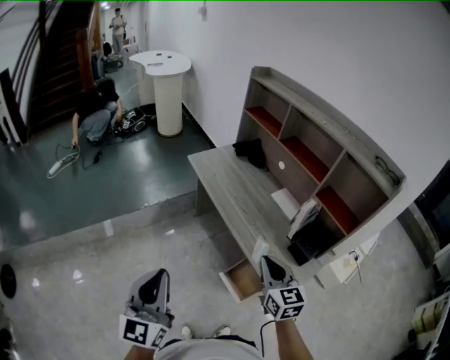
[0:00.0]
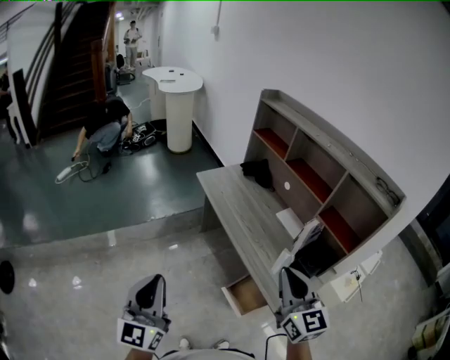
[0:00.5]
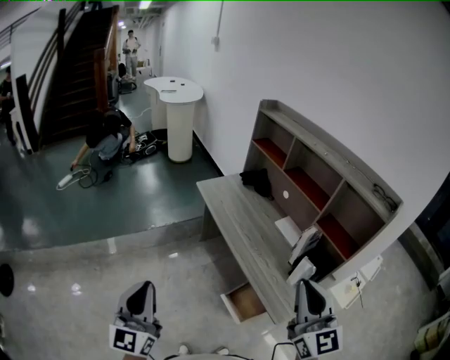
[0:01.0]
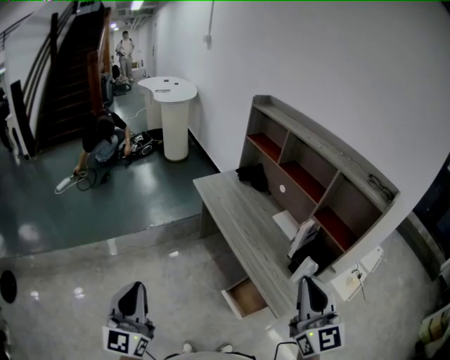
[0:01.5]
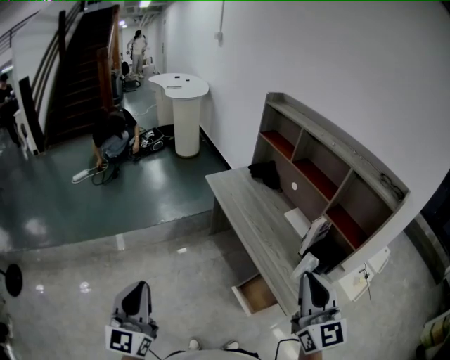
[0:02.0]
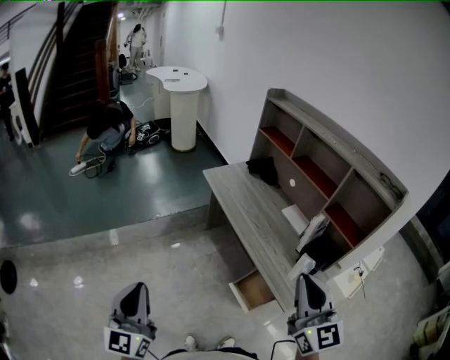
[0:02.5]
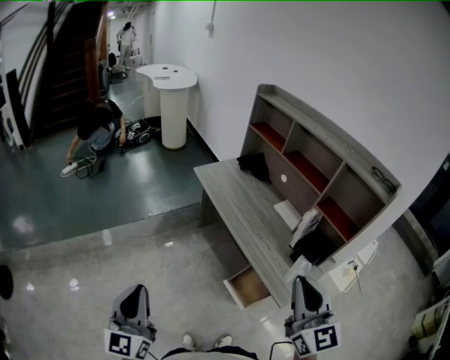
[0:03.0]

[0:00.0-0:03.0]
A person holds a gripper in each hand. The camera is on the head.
0:00.0 to 0:01.5: The left gripper goes about 5 cm to the left. Meanwhile the right gripper travels upward and backward by roughly 20 cm, and turns by roughly 20 degrees.
0:01.5 to 0:03.0: The right gripper is displaced to the left by roughly 5 cm.

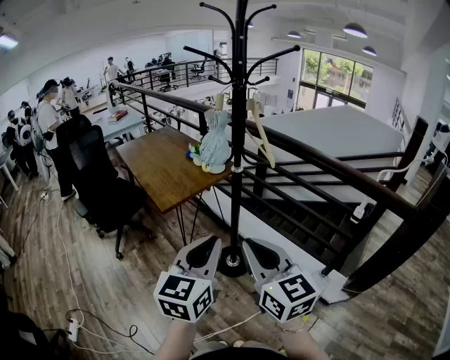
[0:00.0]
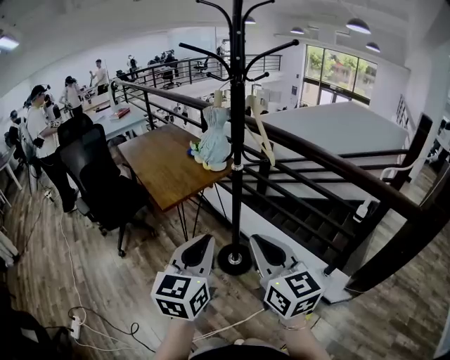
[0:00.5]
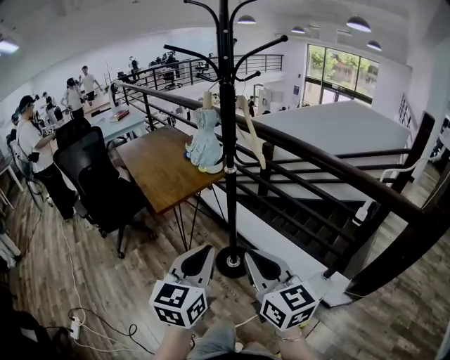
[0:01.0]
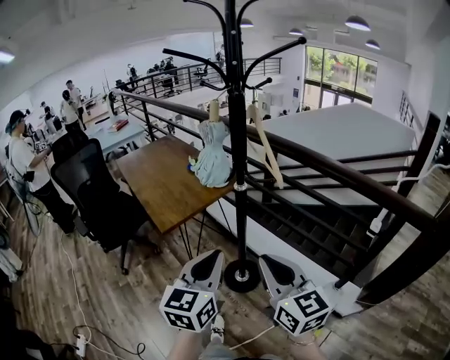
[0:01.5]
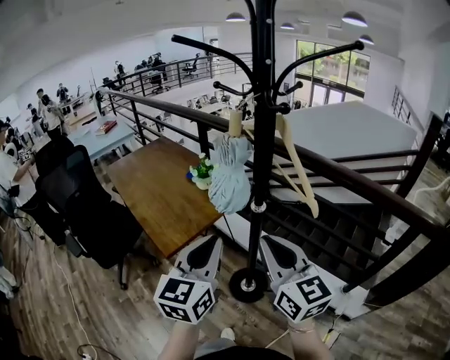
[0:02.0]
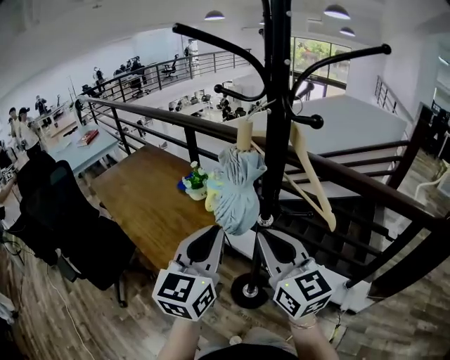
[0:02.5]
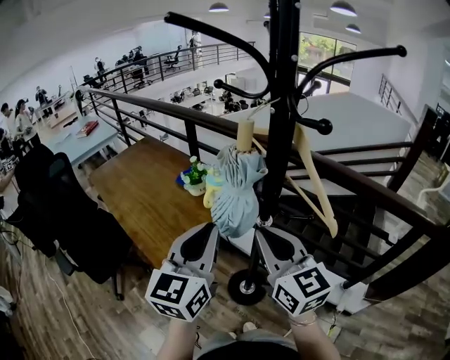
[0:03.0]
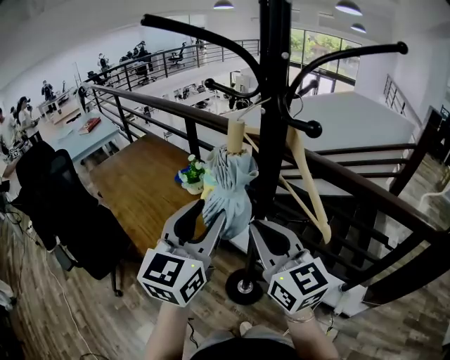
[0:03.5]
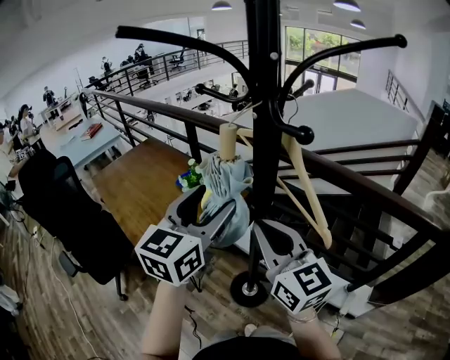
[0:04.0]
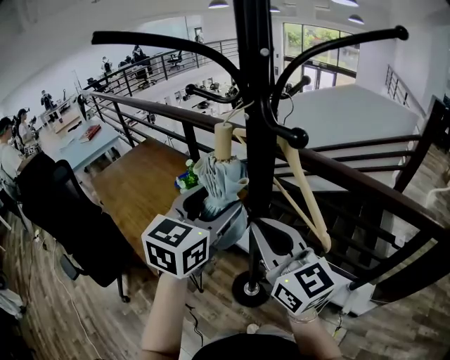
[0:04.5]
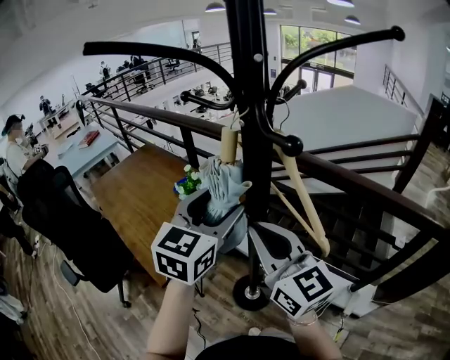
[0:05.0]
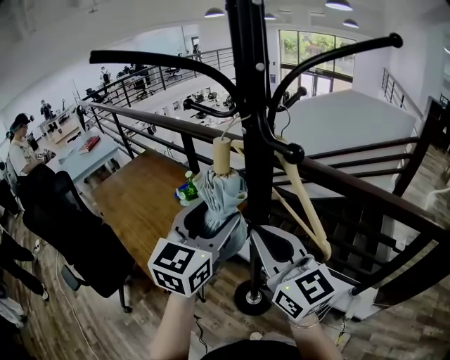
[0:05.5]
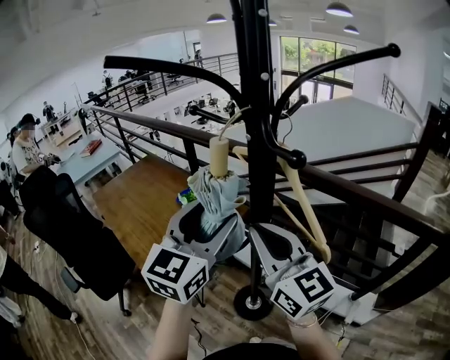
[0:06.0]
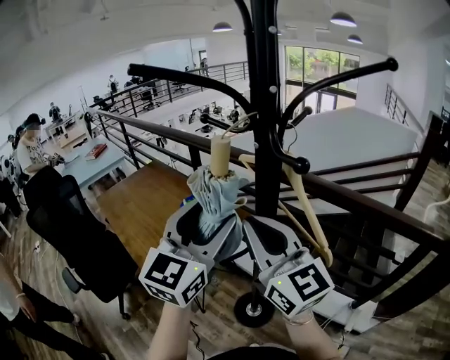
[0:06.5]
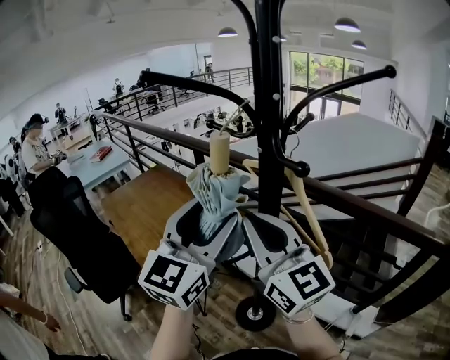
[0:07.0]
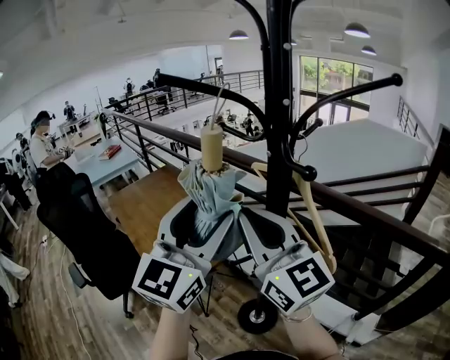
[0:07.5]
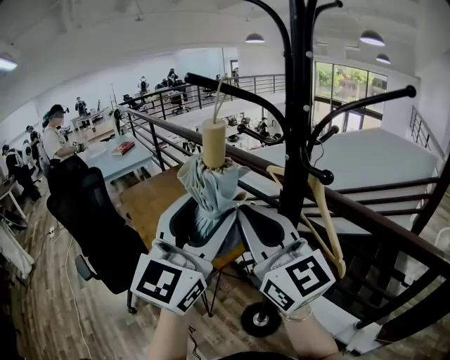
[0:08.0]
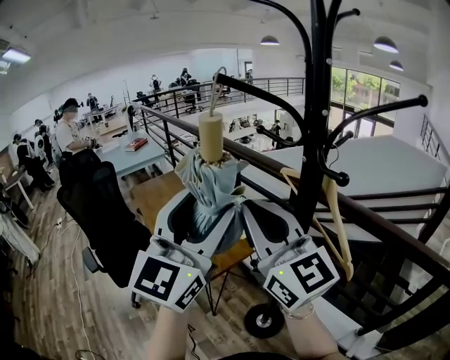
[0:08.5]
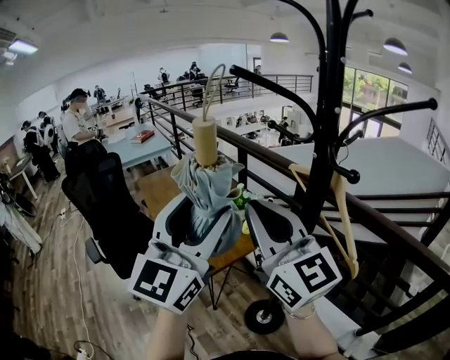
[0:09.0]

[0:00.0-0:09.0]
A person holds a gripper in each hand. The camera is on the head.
0:00.0 to 0:02.0: The grippers both shift forward by approximately 25 cm.
0:02.0 to 0:04.5: Both grippers travel together forward, approximately 15 cm. The left gripper opens.
0:04.5 to 0:07.0: Both grippers move upward, about 10 cm. The left gripper rotates about 20 degrees.
0:07.0 to 0:09.0: The left gripper goes about 10 cm to the left and backward, while the right gripper is displaced to the left by roughly 10 cm.

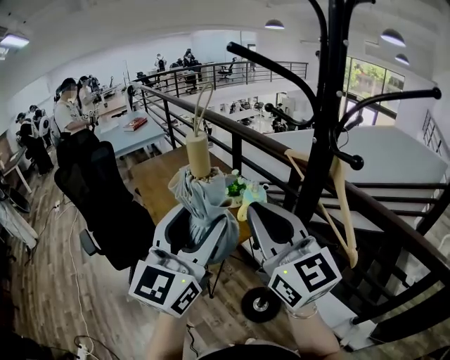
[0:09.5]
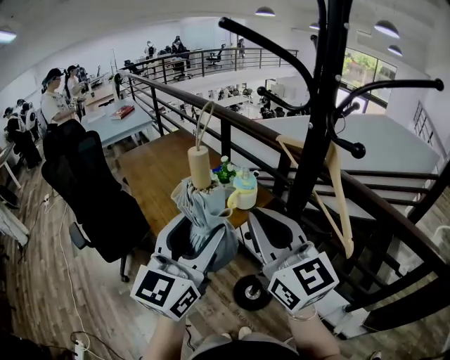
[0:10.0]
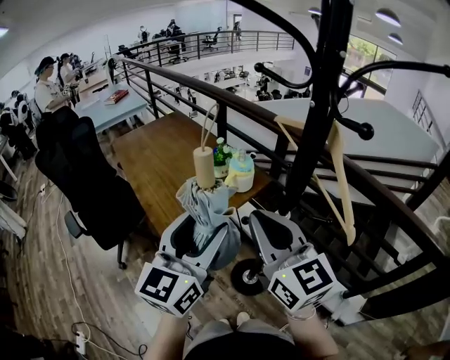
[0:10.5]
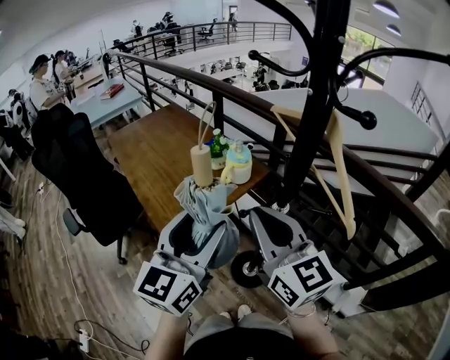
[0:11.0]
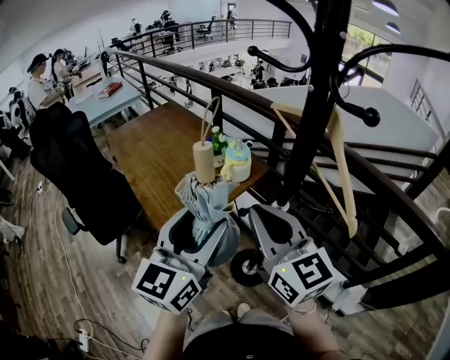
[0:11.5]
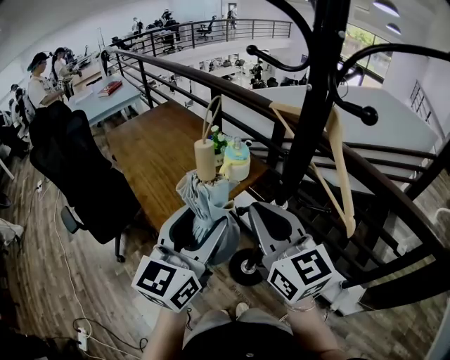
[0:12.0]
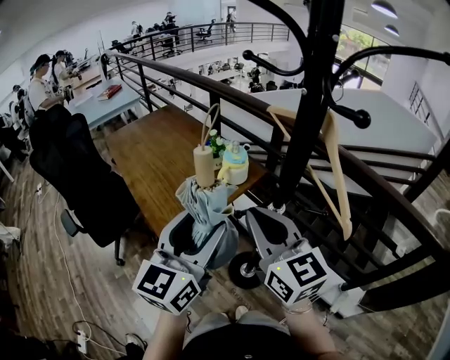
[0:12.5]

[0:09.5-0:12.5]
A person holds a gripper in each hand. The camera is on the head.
0:09.5 to 0:11.0: The two grippers go some 10 cm downward.
0:11.0 to 0:12.5: The grippers move only a little.

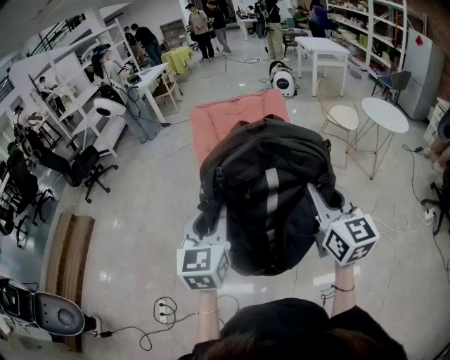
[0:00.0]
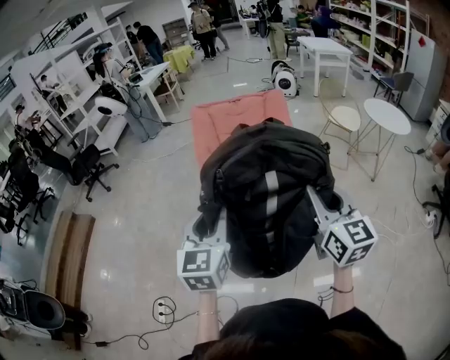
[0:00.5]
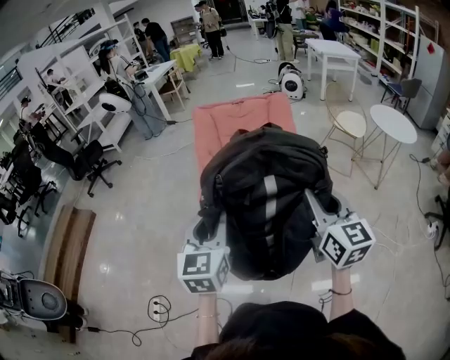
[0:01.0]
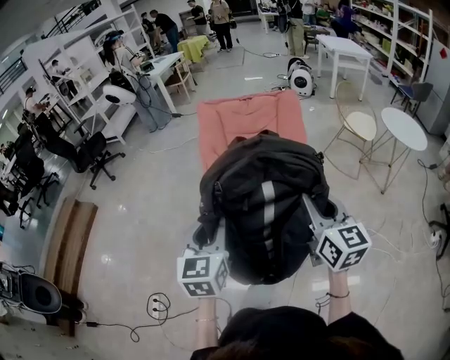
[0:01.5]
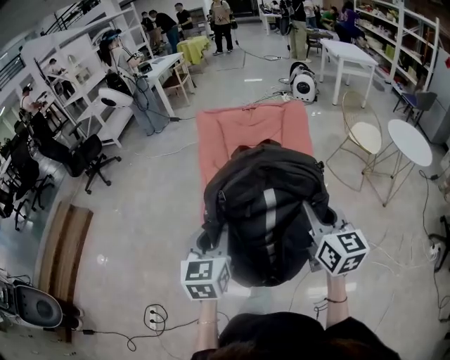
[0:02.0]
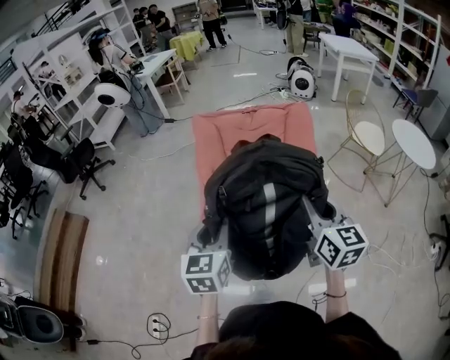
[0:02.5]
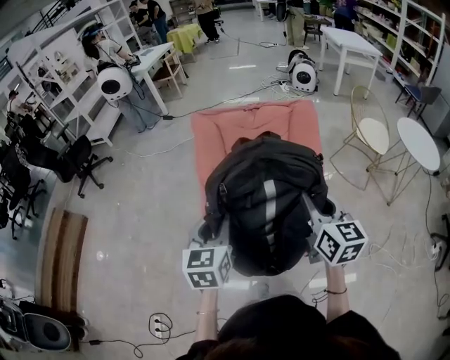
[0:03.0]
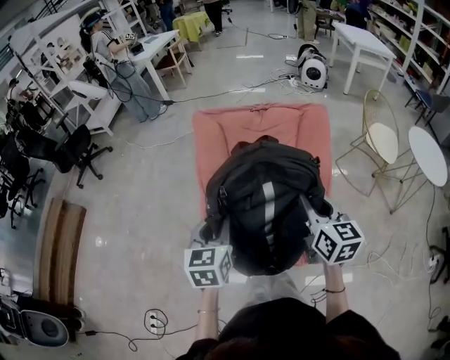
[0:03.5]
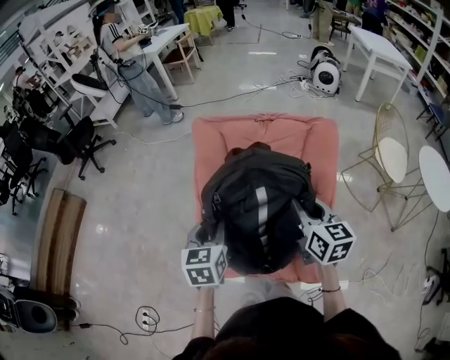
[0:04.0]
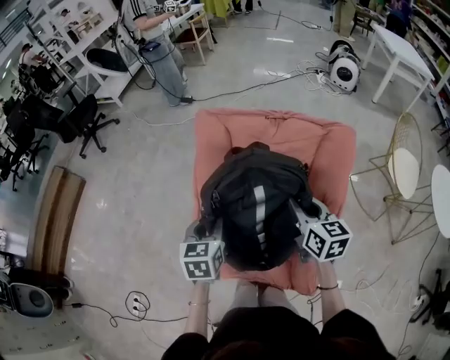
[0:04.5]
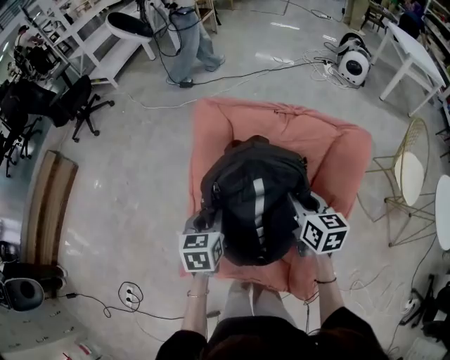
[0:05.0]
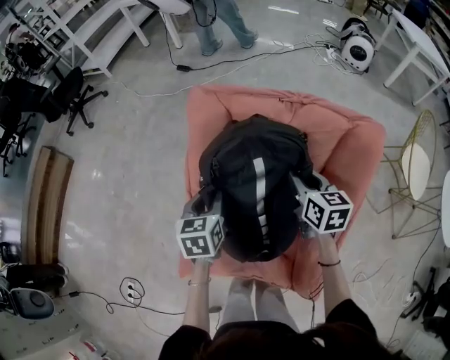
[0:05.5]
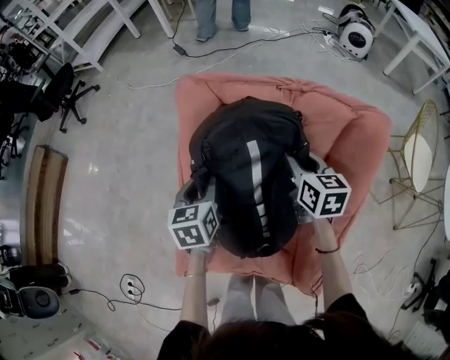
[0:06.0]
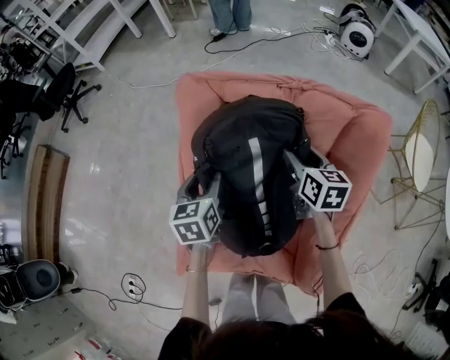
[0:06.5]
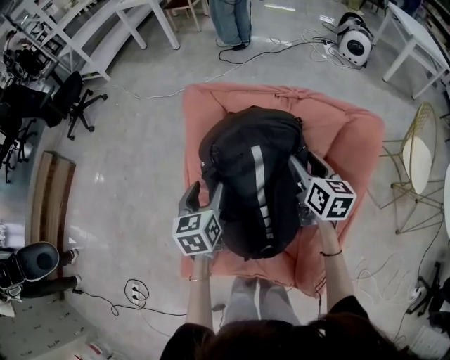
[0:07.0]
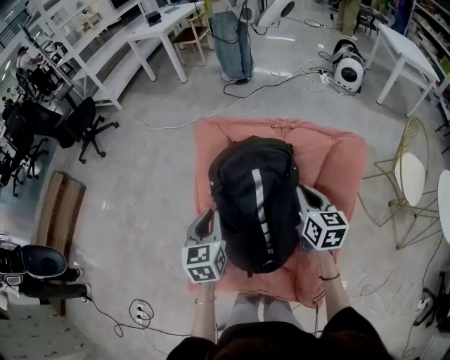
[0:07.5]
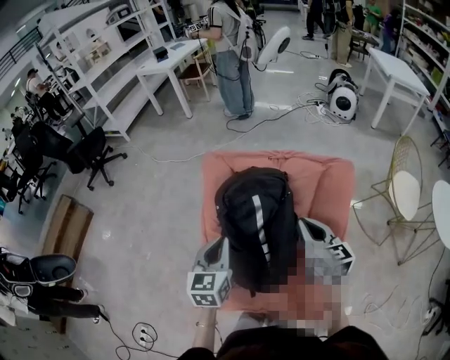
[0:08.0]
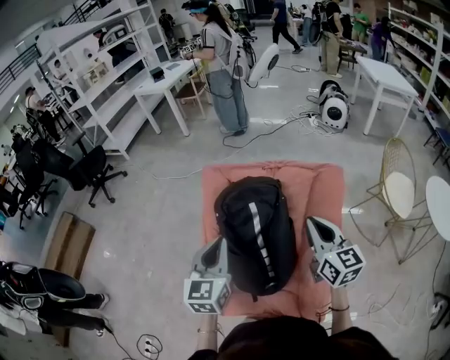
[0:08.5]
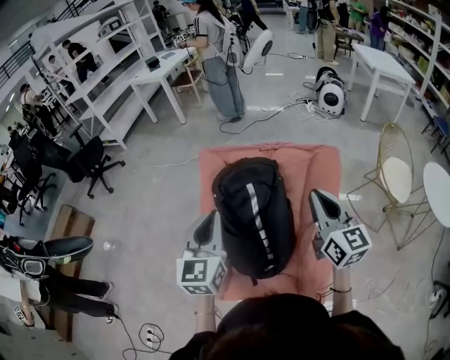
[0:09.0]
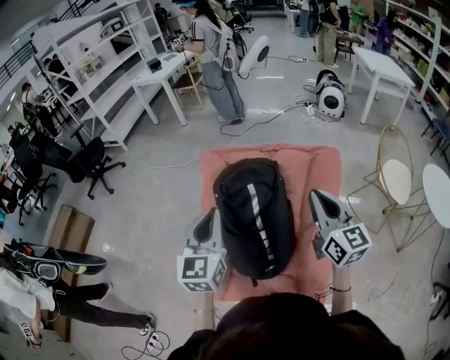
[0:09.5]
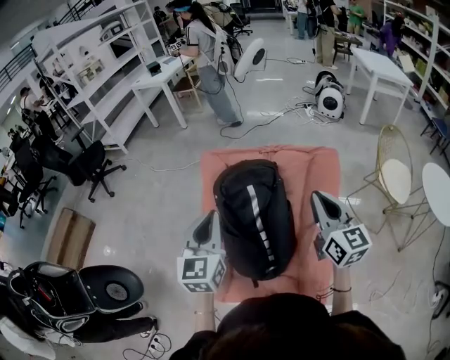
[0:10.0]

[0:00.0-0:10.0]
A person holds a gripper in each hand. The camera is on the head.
0:00.0 to 0:02.0: The two grippers go roughly 20 cm forward.
0:02.0 to 0:04.0: Both grippers move forward, some 35 cm.
0:04.0 to 0:06.0: Both grippers travel together forward and downward, some 30 cm.
0:06.0 to 0:08.0: Both grippers move upward and backward, some 20 cm. The left gripper rotates some 20 degrees, and closes, while the right gripper opens, then closes again.
0:08.0 to 0:10.0: The right gripper is displaced upward and backward by about 15 cm, and swivels roughly 20 degrees; the left gripper is displaced upward by roughly 10 cm.

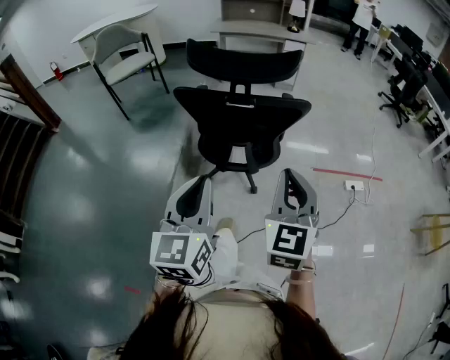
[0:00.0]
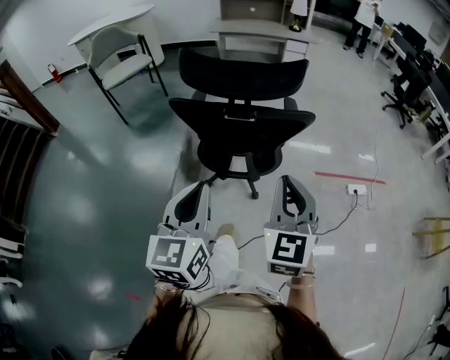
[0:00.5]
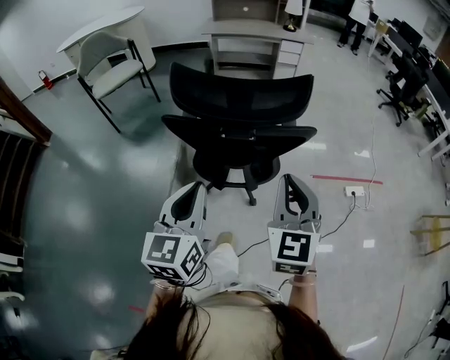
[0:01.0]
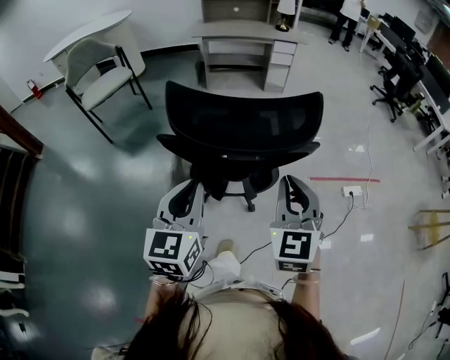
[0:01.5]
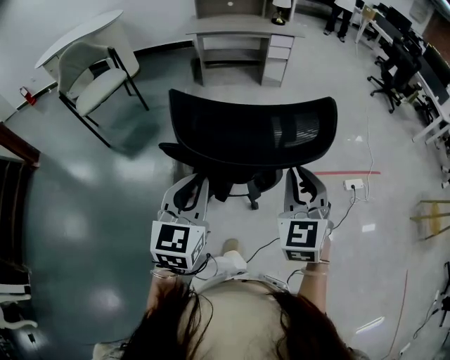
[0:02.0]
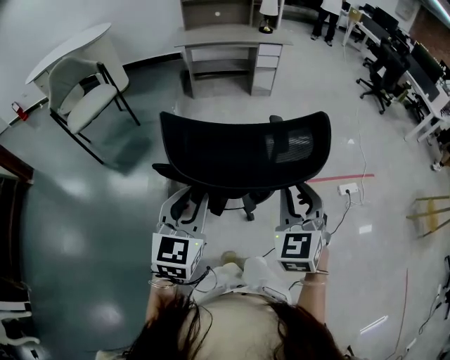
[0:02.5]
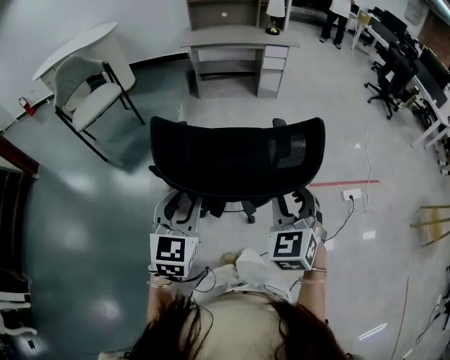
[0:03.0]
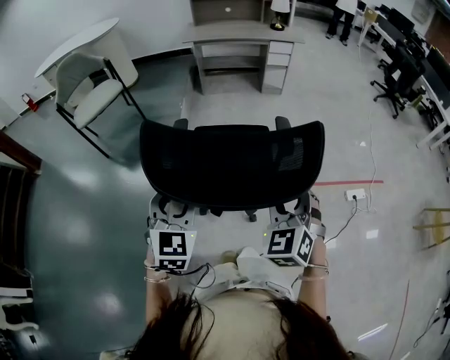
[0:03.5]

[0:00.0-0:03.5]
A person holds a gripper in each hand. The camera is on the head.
0:00.0 to 0:02.0: Both grippers travel together forward, some 20 cm.
0:02.0 to 0:03.5: Both grippers travel together forward, some 5 cm. The right gripper opens, while the left gripper opens.
